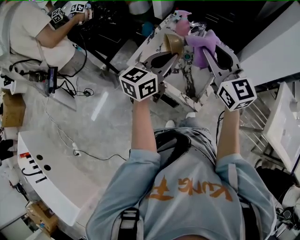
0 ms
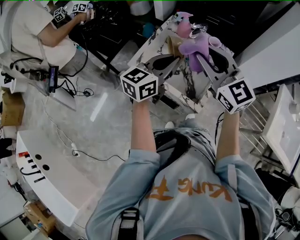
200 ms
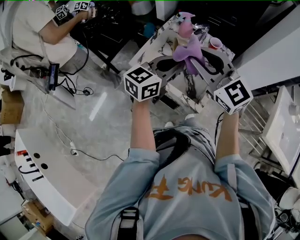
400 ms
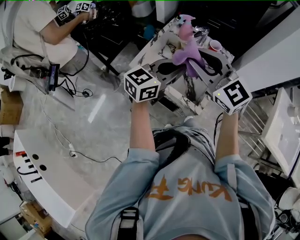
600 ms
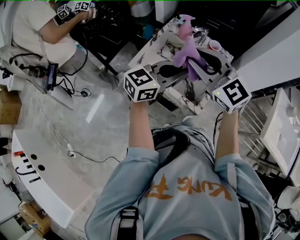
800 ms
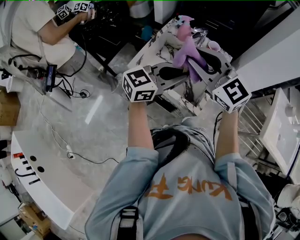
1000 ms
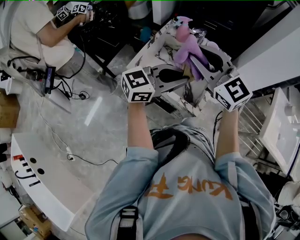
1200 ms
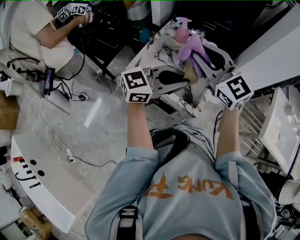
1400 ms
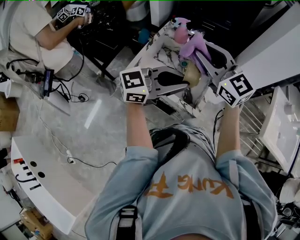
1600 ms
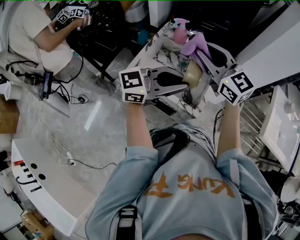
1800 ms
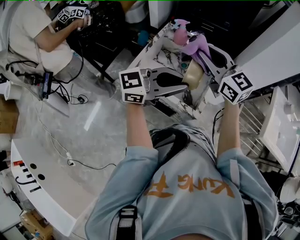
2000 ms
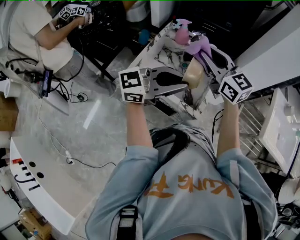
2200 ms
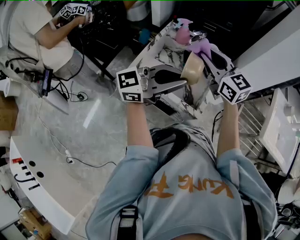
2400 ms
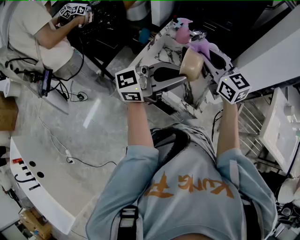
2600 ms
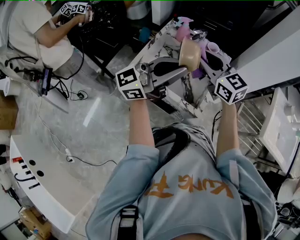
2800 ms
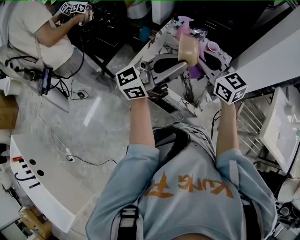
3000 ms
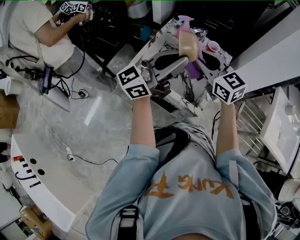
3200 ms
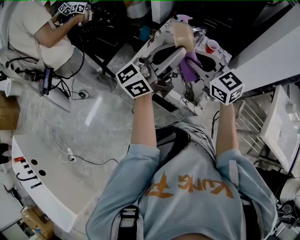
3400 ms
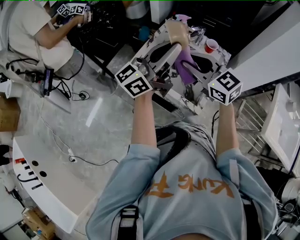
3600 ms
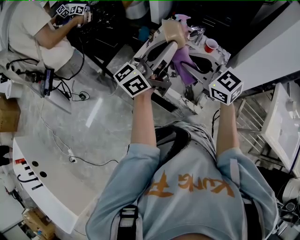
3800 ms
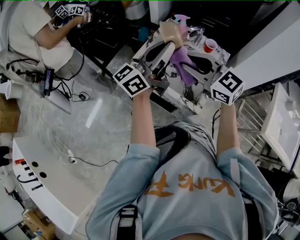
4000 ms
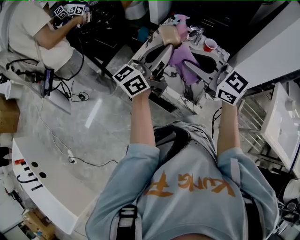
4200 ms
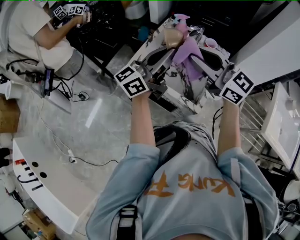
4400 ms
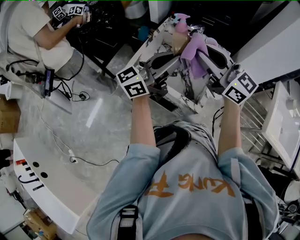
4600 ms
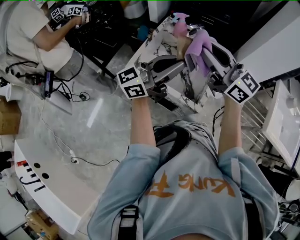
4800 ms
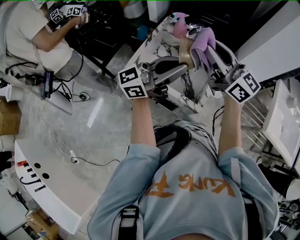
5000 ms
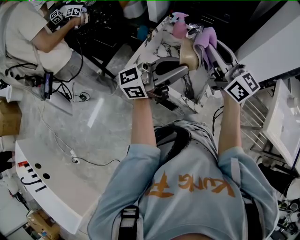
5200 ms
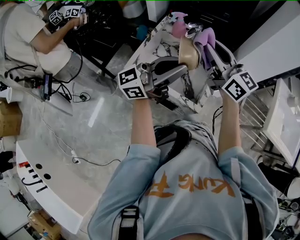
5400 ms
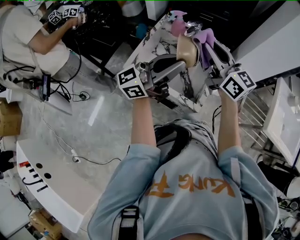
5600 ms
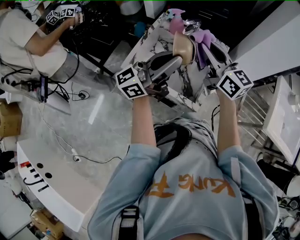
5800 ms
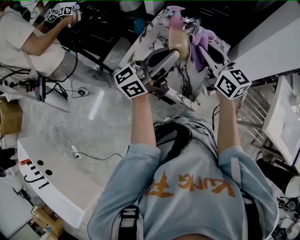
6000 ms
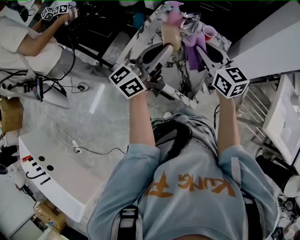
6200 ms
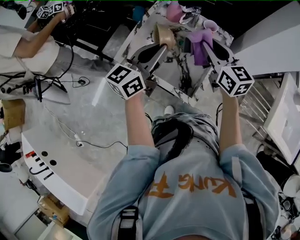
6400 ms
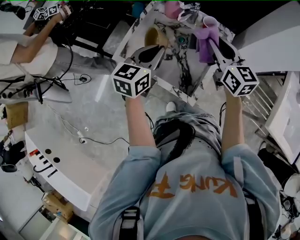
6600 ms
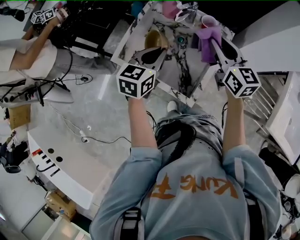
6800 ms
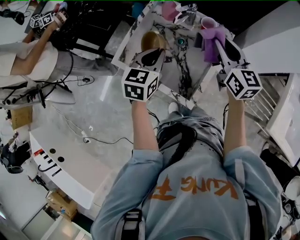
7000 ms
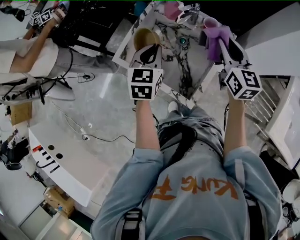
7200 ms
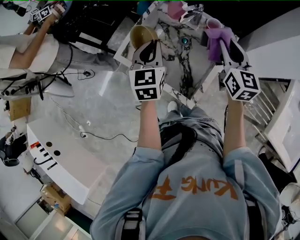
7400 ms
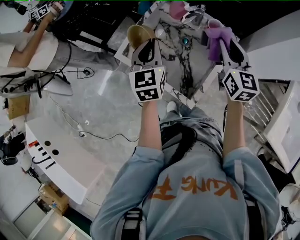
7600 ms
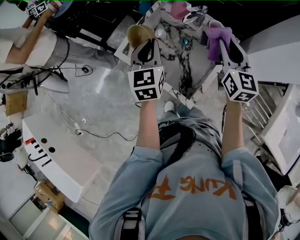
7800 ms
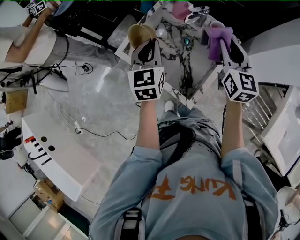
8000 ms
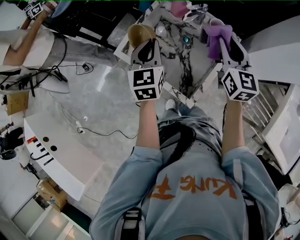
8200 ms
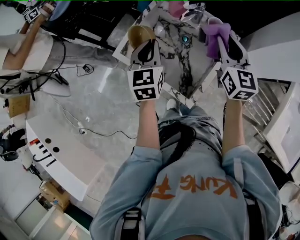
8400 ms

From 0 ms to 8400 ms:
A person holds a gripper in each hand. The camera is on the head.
From 0 ms to 1400 ms: The left gripper shifts about 5 cm backward, and changes its angle by some 40 degrees.
From 1400 ms to 2800 ms: The left gripper shifts roughly 5 cm upward, and turns by some 20 degrees, while the right gripper is displaced downward by some 5 cm.
From 2800 ms to 4200 ms: The right gripper heads backward, covering about 5 cm, and turns by roughly 20 degrees, while the left gripper heads forward, covering approximately 5 cm, and changes its angle by about 30 degrees.
From 4200 ms to 5600 ms: The right gripper moves about 10 cm, and turns by about 30 degrees. The left gripper ends up approximately 5 cm from where it was, and swivels approximately 20 degrees.
From 5600 ms to 7000 ms: The left gripper heads downward and forward, covering some 20 cm, and tilts its fingers approximately 60 degrees downward; the right gripper moves downward, to the right and forward, roughly 15 cm, and swivels about 20 degrees.
From 7000 ms to 8400 ms: The left gripper turns by some 20 degrees.

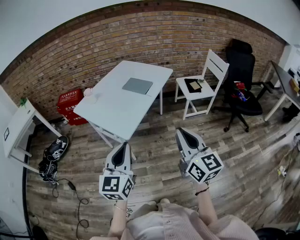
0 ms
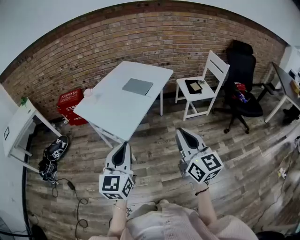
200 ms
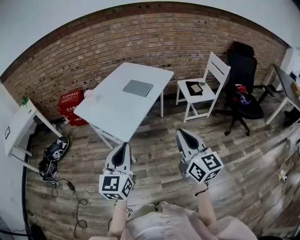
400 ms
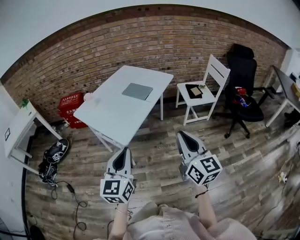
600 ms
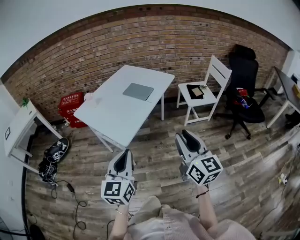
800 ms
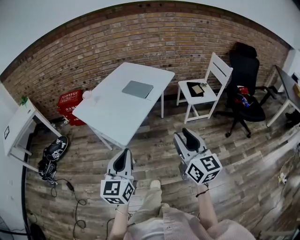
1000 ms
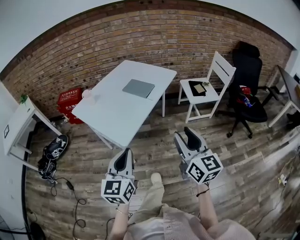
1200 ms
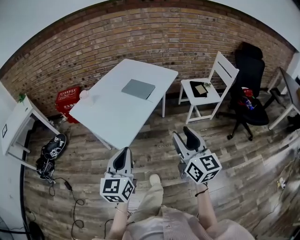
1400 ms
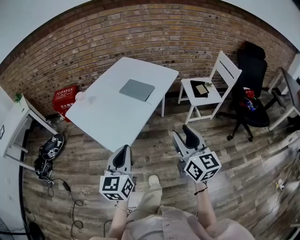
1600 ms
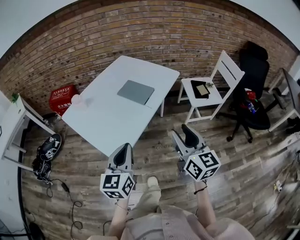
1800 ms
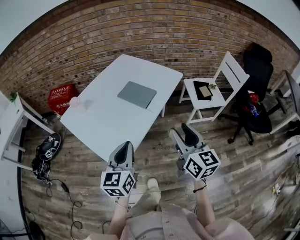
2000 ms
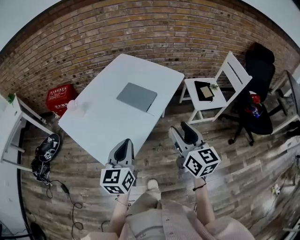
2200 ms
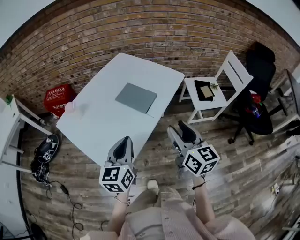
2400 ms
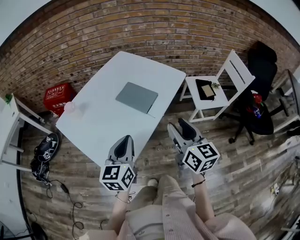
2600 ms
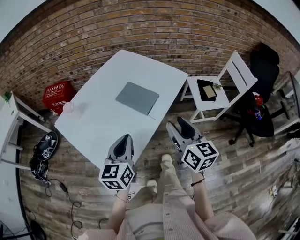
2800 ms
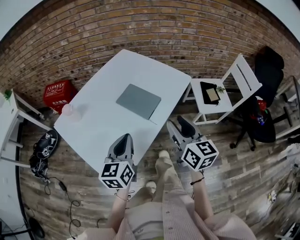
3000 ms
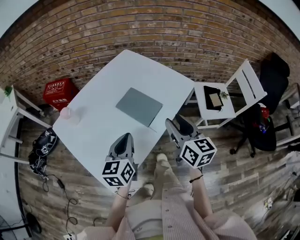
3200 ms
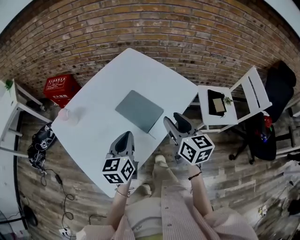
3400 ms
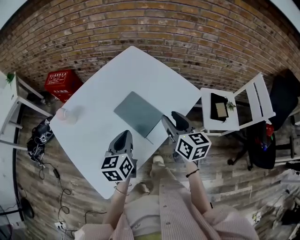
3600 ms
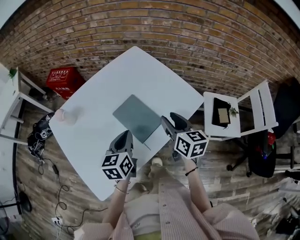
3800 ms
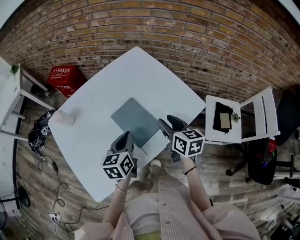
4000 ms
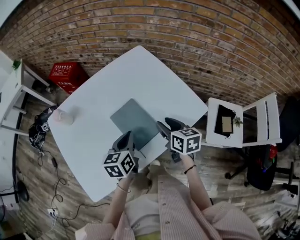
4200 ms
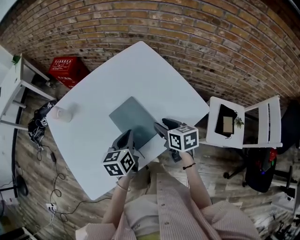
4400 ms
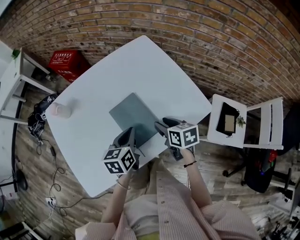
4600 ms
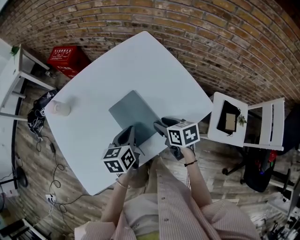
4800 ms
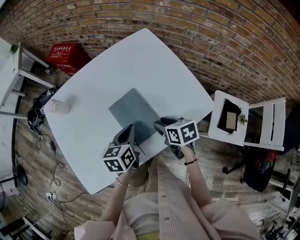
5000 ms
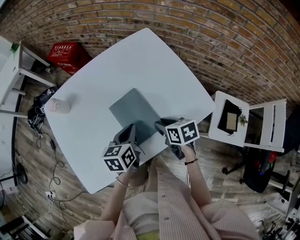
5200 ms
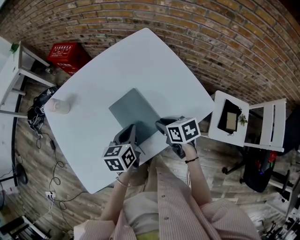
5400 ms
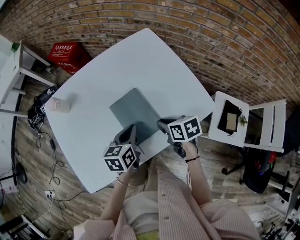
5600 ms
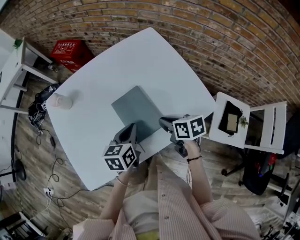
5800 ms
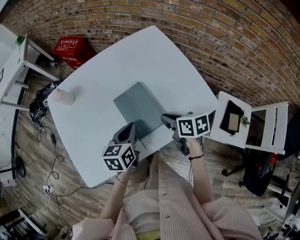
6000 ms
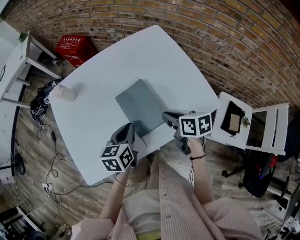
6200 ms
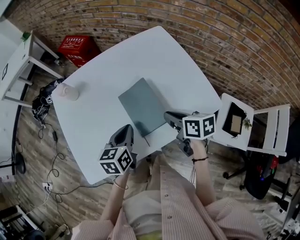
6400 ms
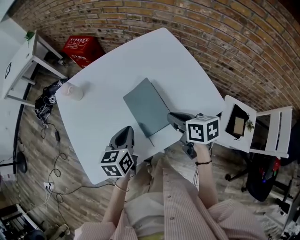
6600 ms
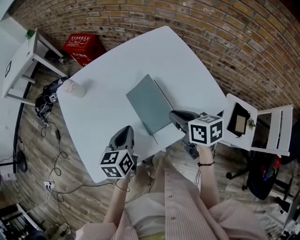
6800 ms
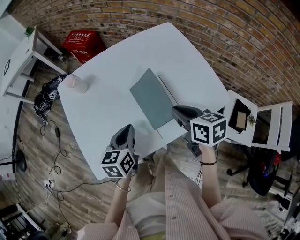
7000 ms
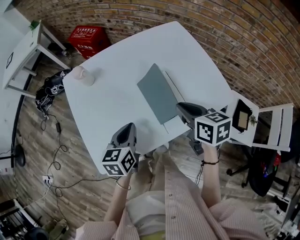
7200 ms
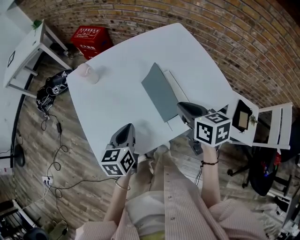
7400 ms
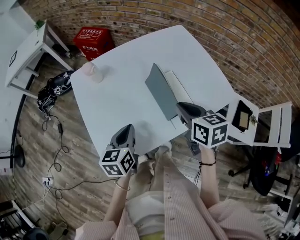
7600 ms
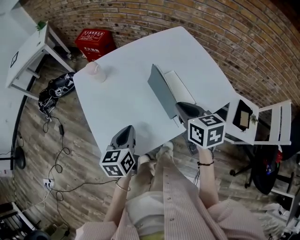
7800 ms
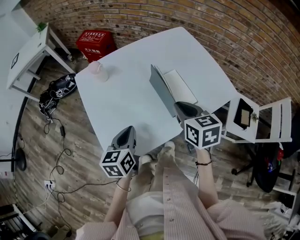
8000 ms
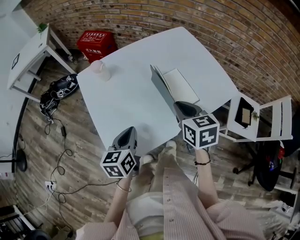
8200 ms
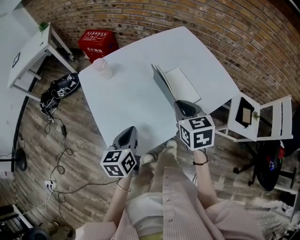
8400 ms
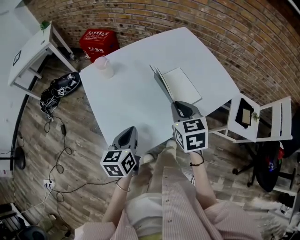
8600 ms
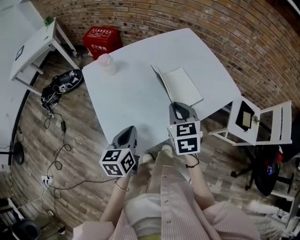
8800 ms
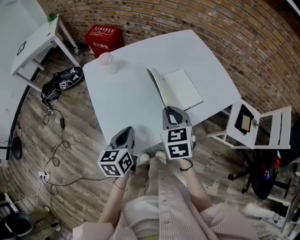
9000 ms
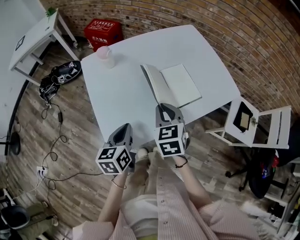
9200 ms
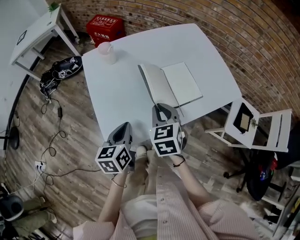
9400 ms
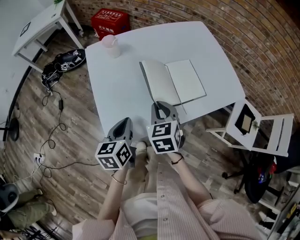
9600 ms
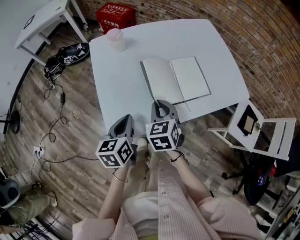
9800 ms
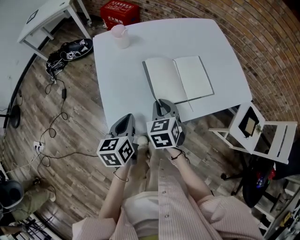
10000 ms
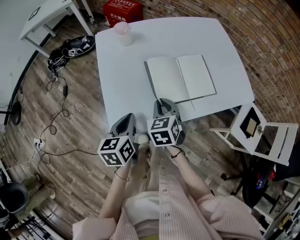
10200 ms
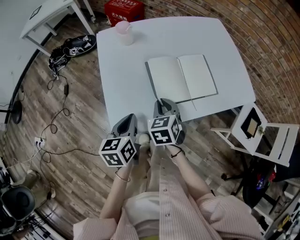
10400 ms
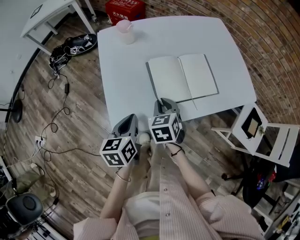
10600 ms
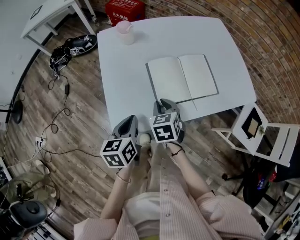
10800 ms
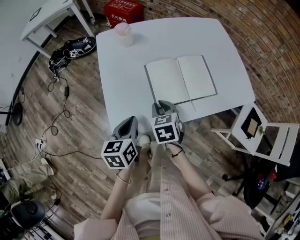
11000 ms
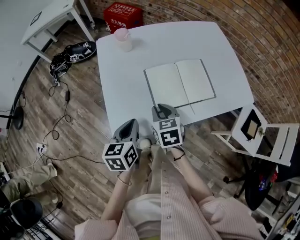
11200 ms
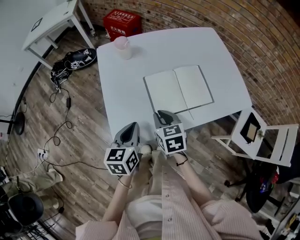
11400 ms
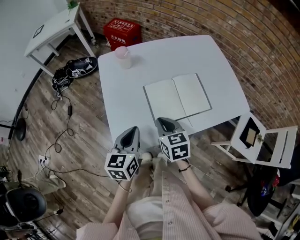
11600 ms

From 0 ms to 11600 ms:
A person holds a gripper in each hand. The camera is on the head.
From 0 ms to 1400 ms: Both grippers move forward, some 10 cm. The right gripper opens up.
From 1400 ms to 2800 ms: Both grippers travel together forward, roughly 30 cm.
From 2800 ms to 4400 ms: The left gripper shifts by roughly 25 cm, and turns by some 30 degrees, while the right gripper ends up some 35 cm from where it was, and turns by about 50 degrees.
From 4400 ms to 5800 ms: The right gripper closes up.
From 5800 ms to 7200 ms: The right gripper shifts some 10 cm upward and to the left; the left gripper goes about 15 cm to the left.
From 7200 ms to 8800 ms: The grippers both shift to the left and backward by about 15 cm. The right gripper changes its angle by roughly 30 degrees.
From 8800 ms to 10200 ms: The right gripper travels downward and to the left by approximately 15 cm, while the left gripper moves approximately 5 cm.
From 10200 ms to 11600 ms: The right gripper turns by about 20 degrees.

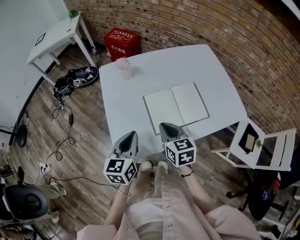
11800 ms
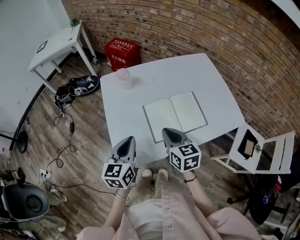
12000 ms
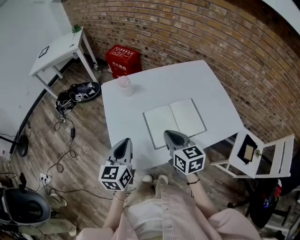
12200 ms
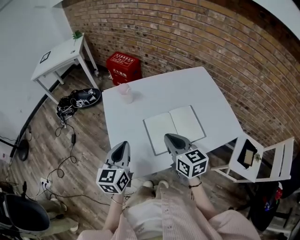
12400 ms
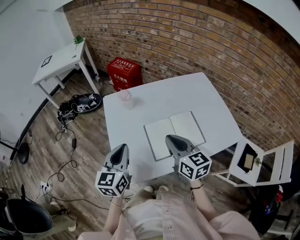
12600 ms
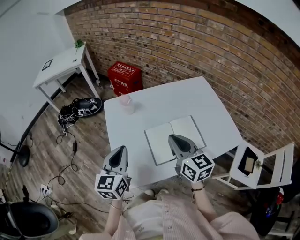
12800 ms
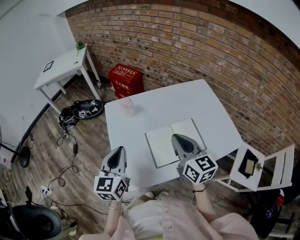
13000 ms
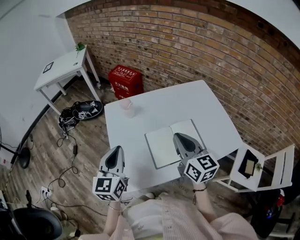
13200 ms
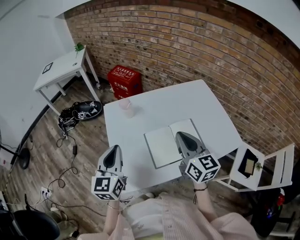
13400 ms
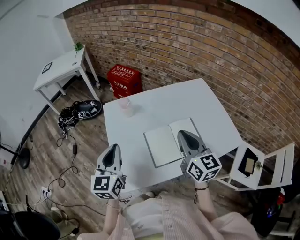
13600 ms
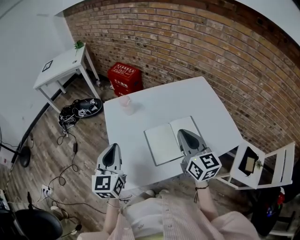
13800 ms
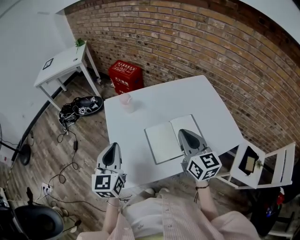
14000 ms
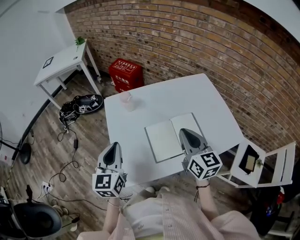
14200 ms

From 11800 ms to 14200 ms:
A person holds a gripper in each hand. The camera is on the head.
From 11800 ms to 13000 ms: The right gripper shifts roughly 15 cm upward, and swivels roughly 20 degrees; the left gripper is displaced upward and forward by about 10 cm.
From 13000 ms to 14200 ms: The grippers stay close to where they were, moving slightly.

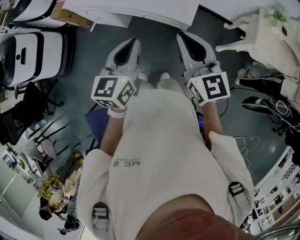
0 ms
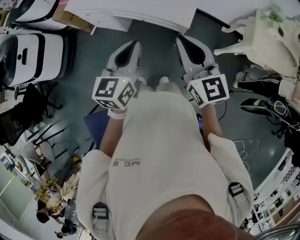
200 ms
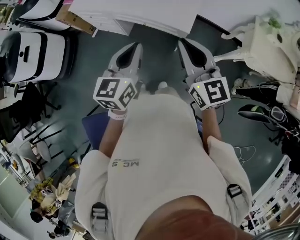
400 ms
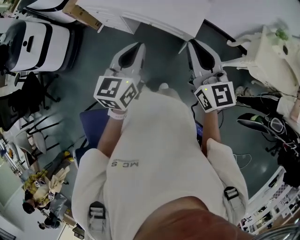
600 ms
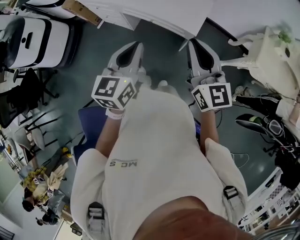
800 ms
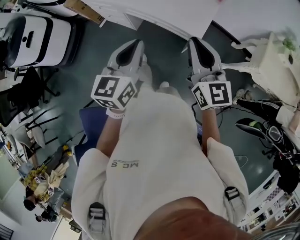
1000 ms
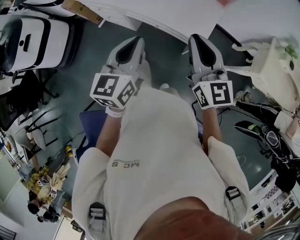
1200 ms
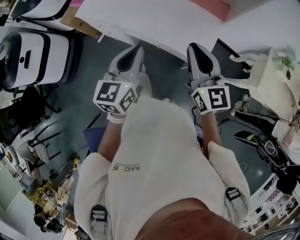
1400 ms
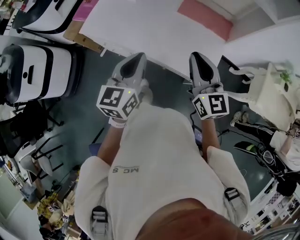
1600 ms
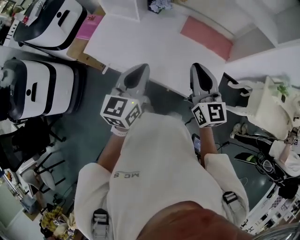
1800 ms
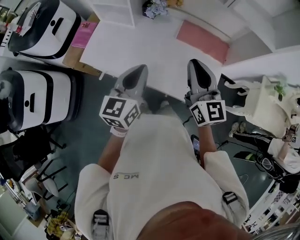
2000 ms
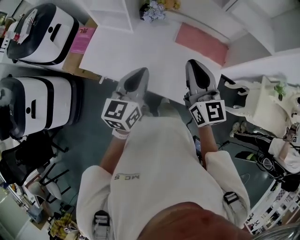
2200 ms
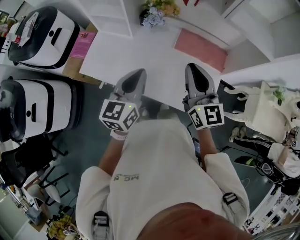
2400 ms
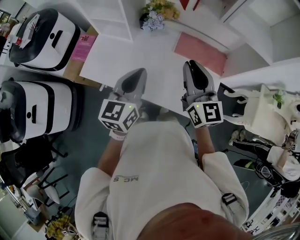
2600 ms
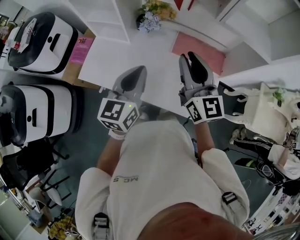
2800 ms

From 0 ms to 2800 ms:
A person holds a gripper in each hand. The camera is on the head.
From 0 ms to 1400 ms: The two grippers go some 20 cm forward.
From 1400 ms to 2800 ms: The two grippers go approximately 30 cm forward.
